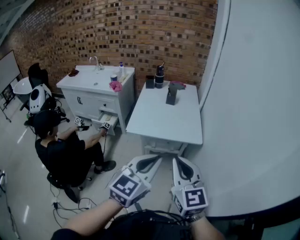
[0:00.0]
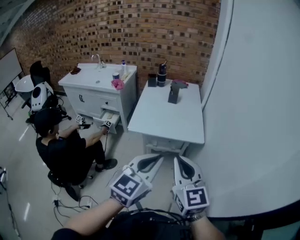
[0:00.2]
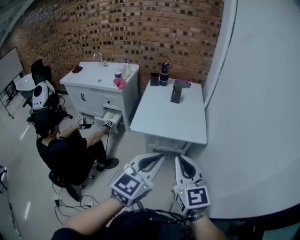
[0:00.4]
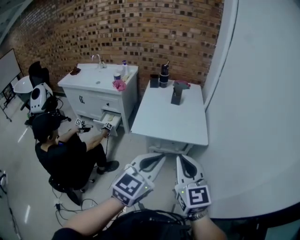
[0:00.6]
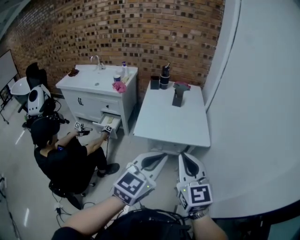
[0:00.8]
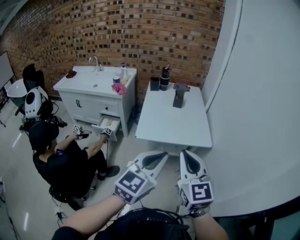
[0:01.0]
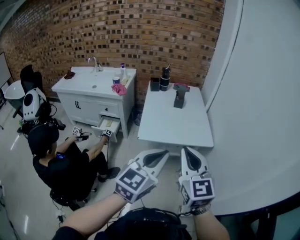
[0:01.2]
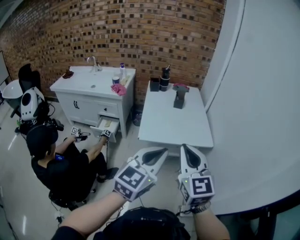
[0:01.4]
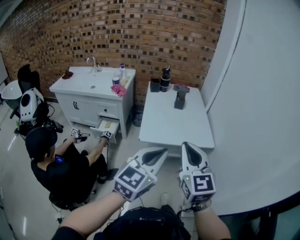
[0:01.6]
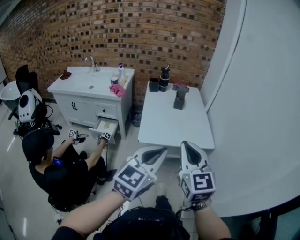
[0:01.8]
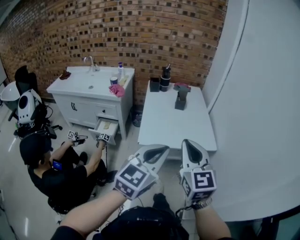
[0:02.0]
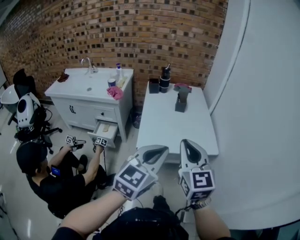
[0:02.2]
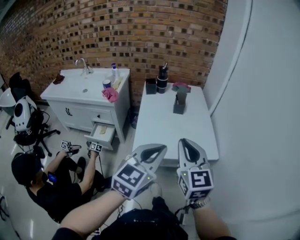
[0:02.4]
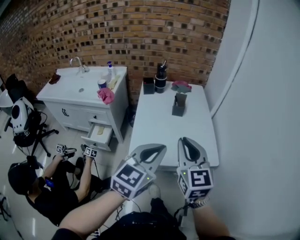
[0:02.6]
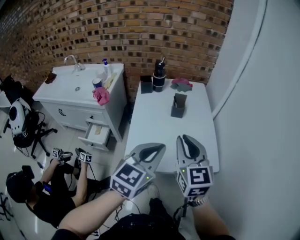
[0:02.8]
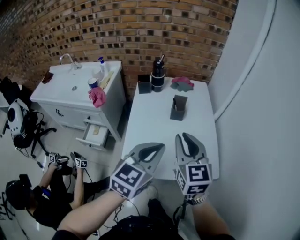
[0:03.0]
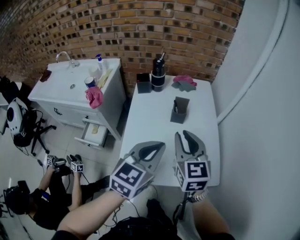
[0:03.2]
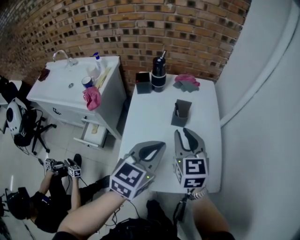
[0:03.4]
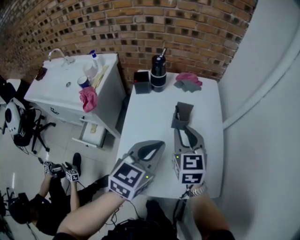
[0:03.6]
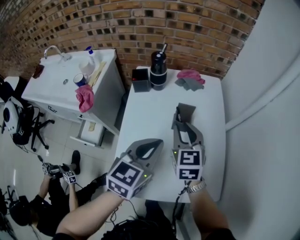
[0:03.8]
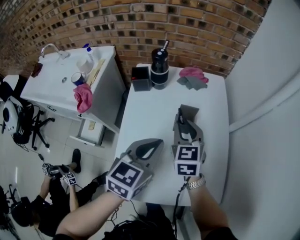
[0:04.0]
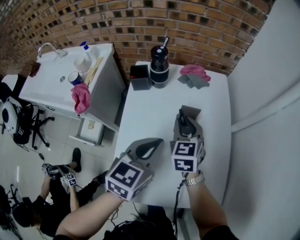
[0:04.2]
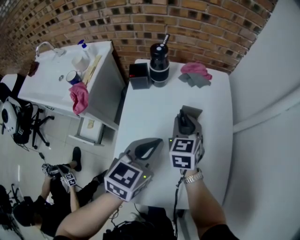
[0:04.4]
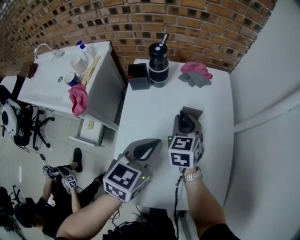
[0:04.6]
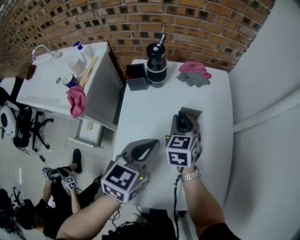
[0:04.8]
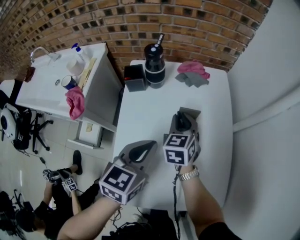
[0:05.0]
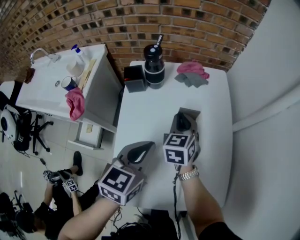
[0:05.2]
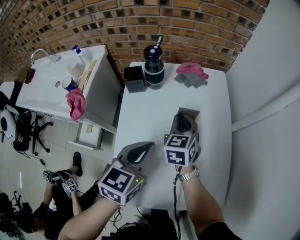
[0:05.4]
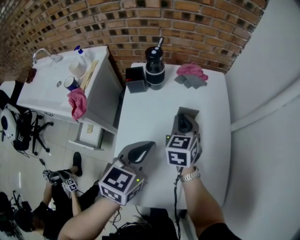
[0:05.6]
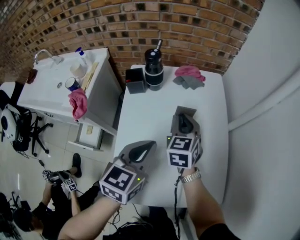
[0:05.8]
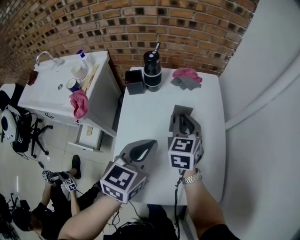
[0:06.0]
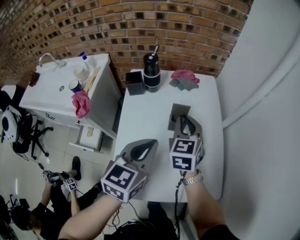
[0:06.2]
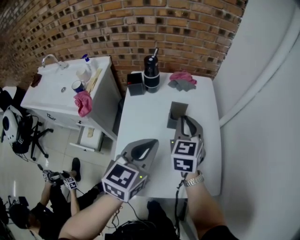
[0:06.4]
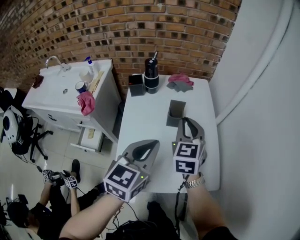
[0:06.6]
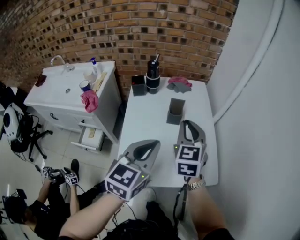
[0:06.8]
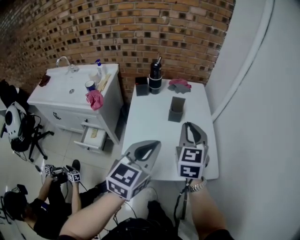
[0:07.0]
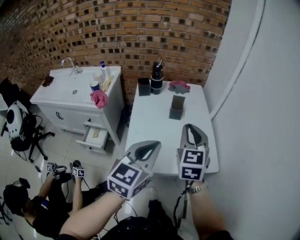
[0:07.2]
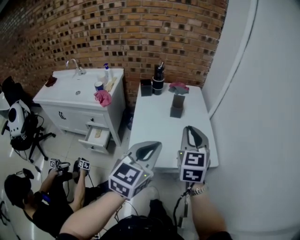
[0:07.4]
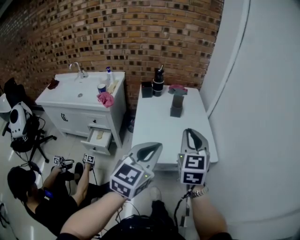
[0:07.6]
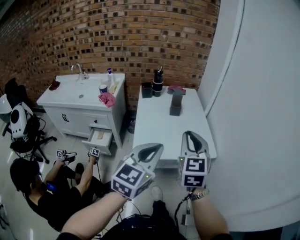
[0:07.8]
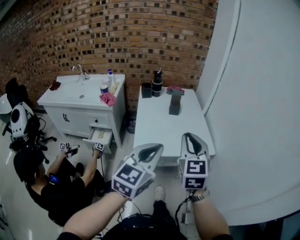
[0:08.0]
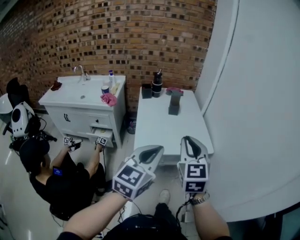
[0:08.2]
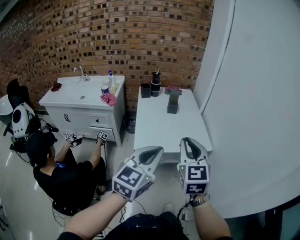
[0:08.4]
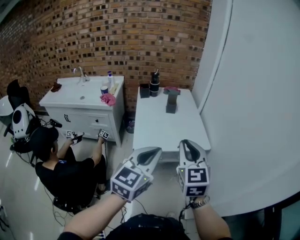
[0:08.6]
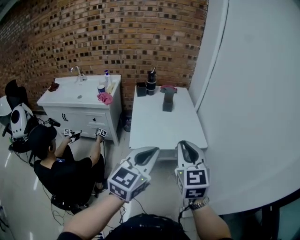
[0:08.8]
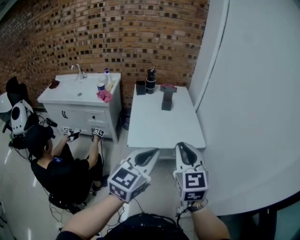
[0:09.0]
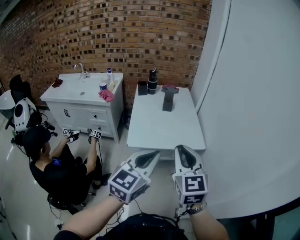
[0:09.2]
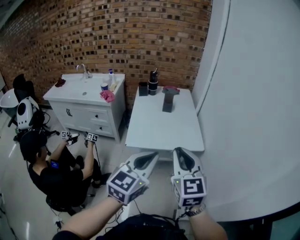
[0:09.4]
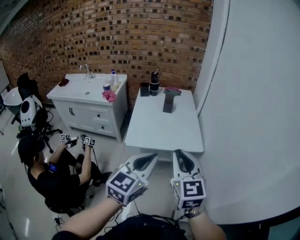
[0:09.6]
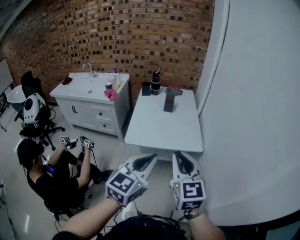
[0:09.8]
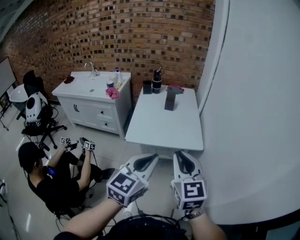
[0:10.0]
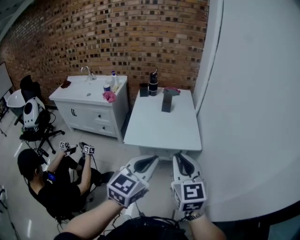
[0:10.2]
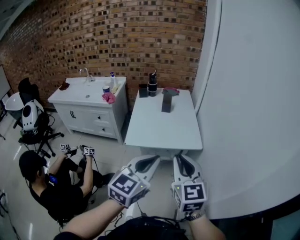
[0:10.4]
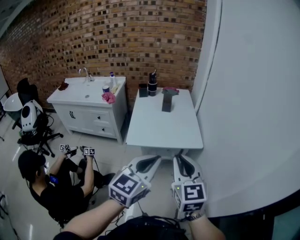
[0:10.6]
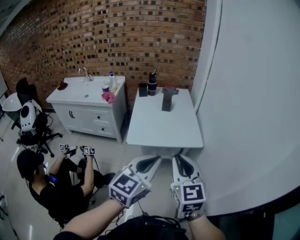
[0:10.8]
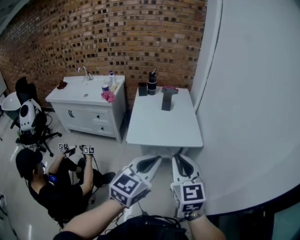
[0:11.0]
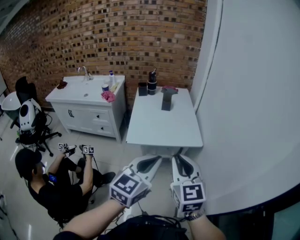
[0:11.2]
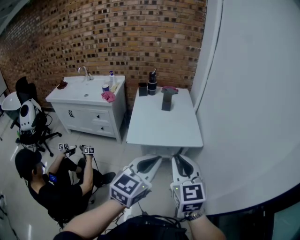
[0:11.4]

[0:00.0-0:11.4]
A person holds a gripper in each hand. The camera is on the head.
0:00.0 to 0:01.4: Both grippers move to the left, roughly 15 cm.
0:01.4 to 0:02.8: Both grippers move forward, some 35 cm.
0:02.8 to 0:04.2: The two grippers go roughly 35 cm forward and downward. The right gripper turns by roughly 20 degrees.
0:04.2 to 0:05.6: The grippers make only small movements.
0:05.6 to 0:07.2: The two grippers go roughly 35 cm backward and upward.
0:07.2 to 0:08.6: Both grippers travel together backward, approximately 30 cm.
0:08.6 to 0:10.0: Both grippers move to the right, approximately 15 cm.
0:10.0 to 0:11.4: The right gripper shifts by roughly 5 cm.

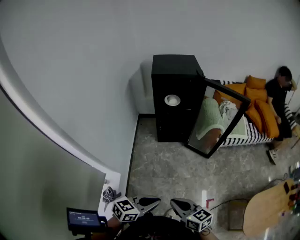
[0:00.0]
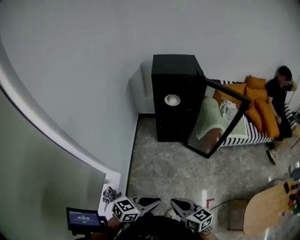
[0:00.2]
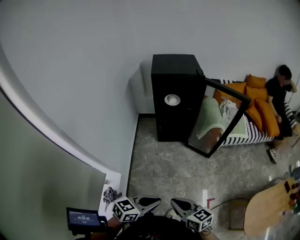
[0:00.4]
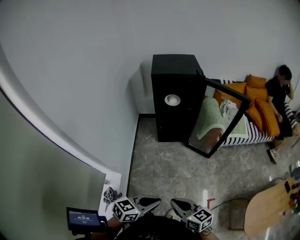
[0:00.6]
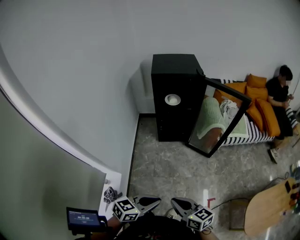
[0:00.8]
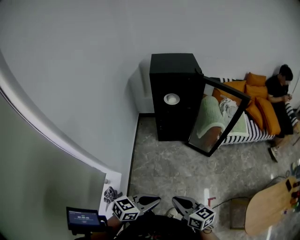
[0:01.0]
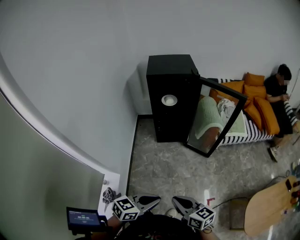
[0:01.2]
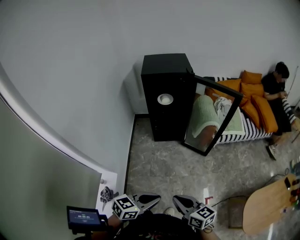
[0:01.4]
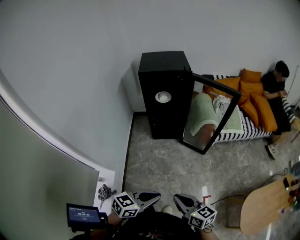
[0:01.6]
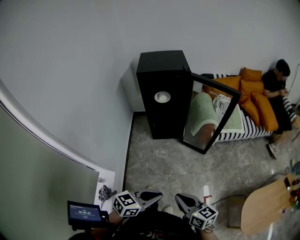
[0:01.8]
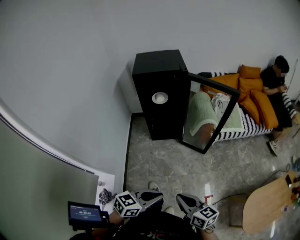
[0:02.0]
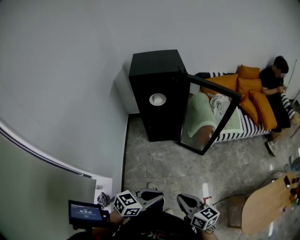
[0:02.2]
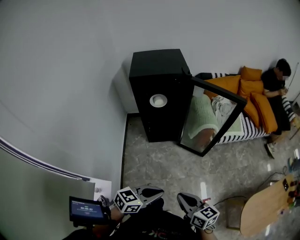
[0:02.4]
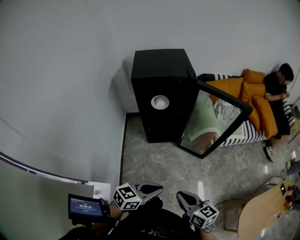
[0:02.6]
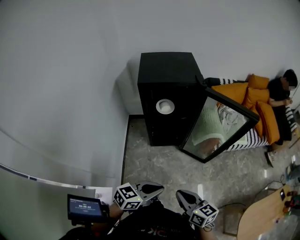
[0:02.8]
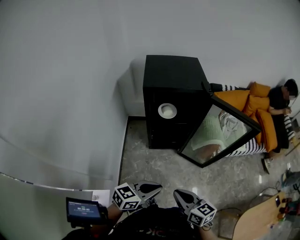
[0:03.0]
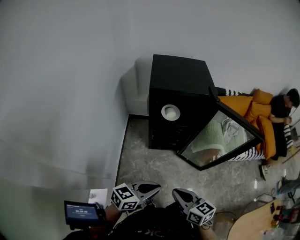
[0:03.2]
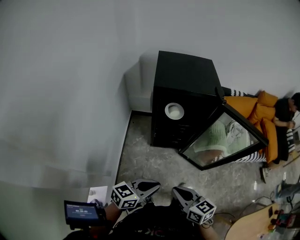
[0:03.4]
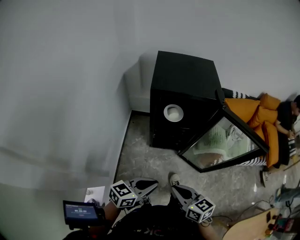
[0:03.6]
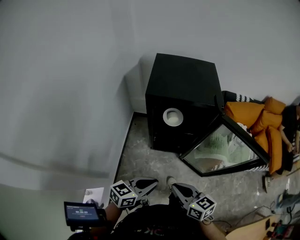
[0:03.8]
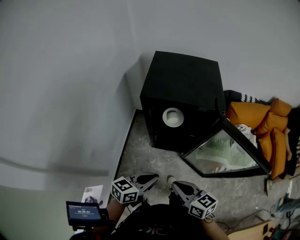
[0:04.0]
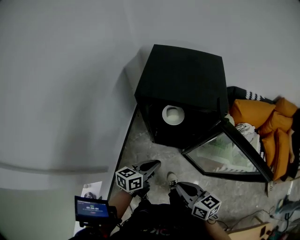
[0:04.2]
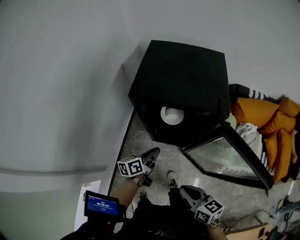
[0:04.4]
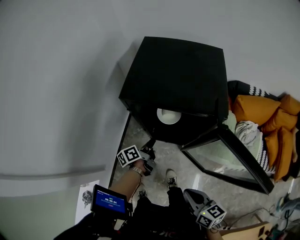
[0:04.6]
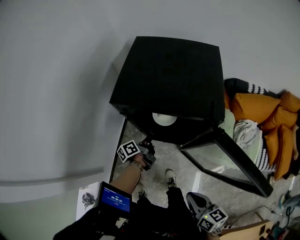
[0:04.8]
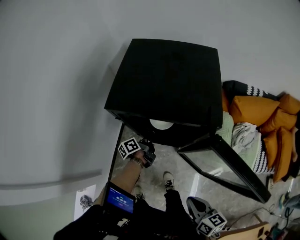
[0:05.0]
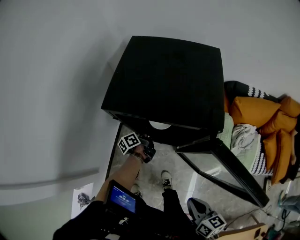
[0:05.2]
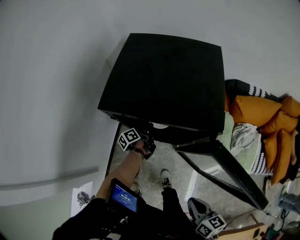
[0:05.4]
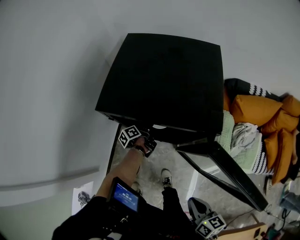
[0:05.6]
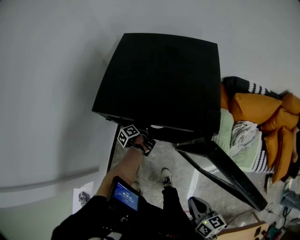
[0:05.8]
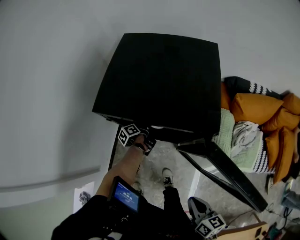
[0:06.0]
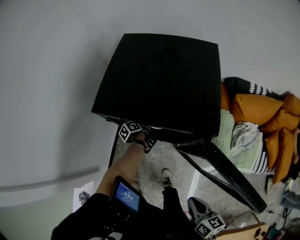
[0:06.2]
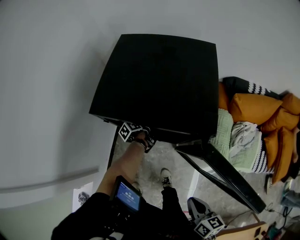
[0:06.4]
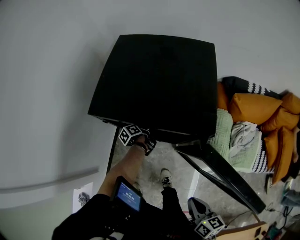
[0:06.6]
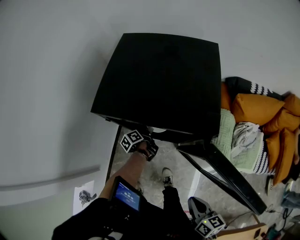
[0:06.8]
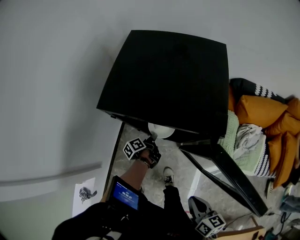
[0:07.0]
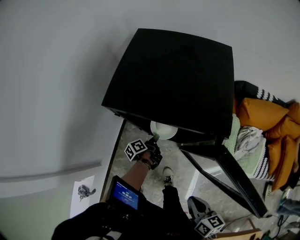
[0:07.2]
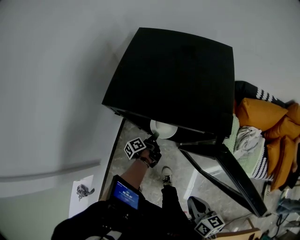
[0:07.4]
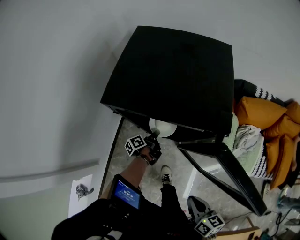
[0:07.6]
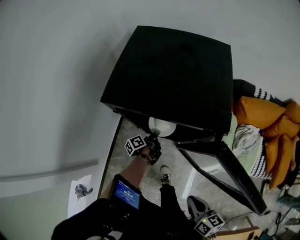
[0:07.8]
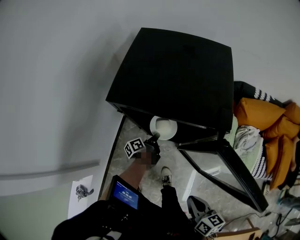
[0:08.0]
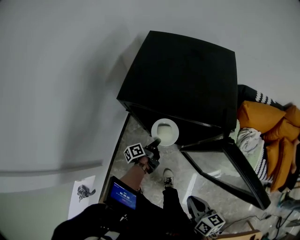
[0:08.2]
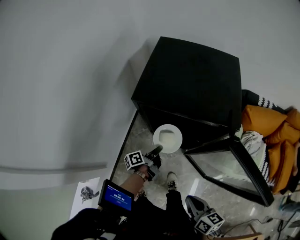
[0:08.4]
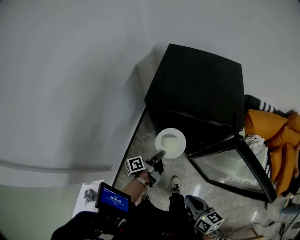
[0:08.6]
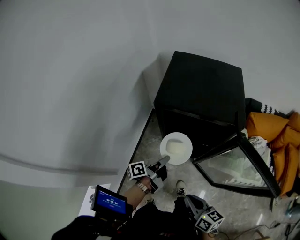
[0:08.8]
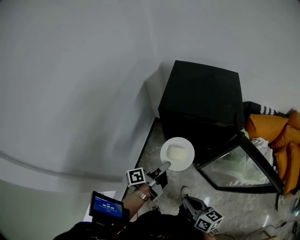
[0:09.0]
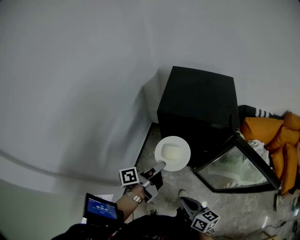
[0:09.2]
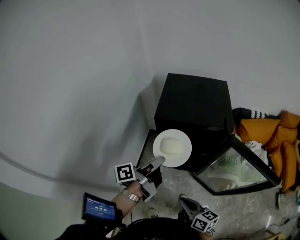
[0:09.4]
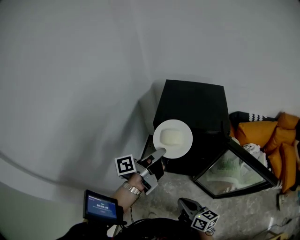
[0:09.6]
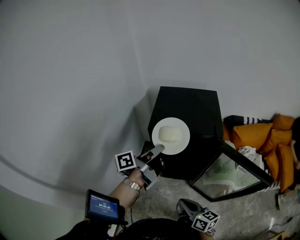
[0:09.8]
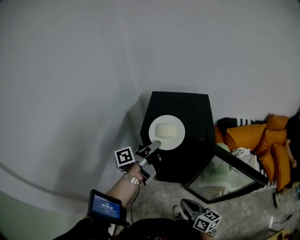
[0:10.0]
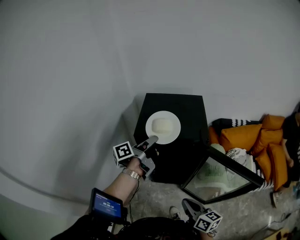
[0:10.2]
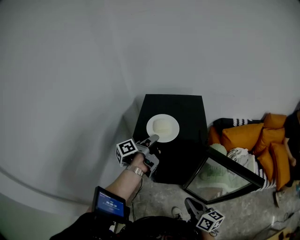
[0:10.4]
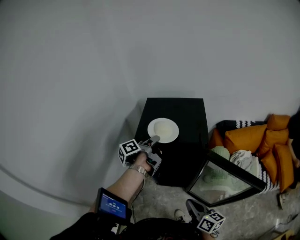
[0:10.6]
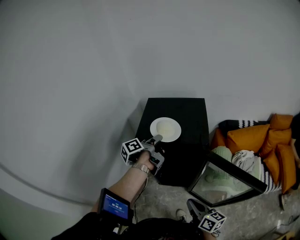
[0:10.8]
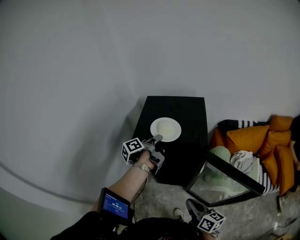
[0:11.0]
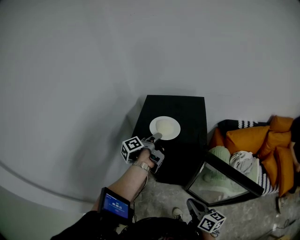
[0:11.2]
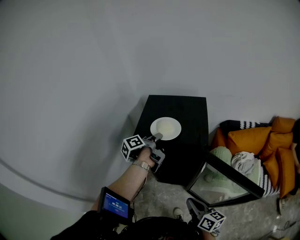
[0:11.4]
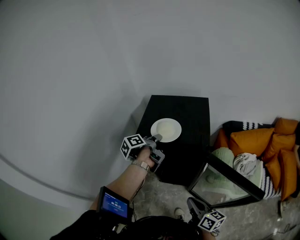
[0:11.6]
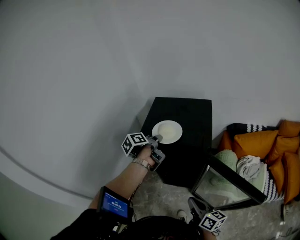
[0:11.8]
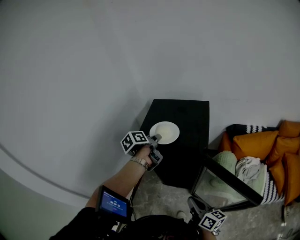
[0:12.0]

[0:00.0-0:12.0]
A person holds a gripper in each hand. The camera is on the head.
0:00.0 to 0:01.6: Both grippers move to the right, about 10 cm.
0:01.6 to 0:03.0: The grippers both shift forward and to the left by some 25 cm.
0:03.0 to 0:04.4: The right gripper moves some 25 cm, while the left gripper changes place by about 35 cm, and changes its angle by about 60 degrees.
0:04.4 to 0:06.0: The right gripper moves to the right, about 10 cm; the left gripper travels forward and downward by some 25 cm, turns by some 40 degrees, and opens its fingers.
0:06.0 to 0:07.6: The left gripper is displaced backward by approximately 5 cm, and closes its fingers.
0:07.6 to 0:09.0: The left gripper moves upward and backward, approximately 30 cm, and changes its angle by some 30 degrees; the right gripper moves to the left, some 15 cm.
0:09.0 to 0:10.4: The right gripper is displaced to the right by about 10 cm; the left gripper goes approximately 25 cm forward and upward.
0:10.4 to 0:12.0: The right gripper changes place by some 5 cm. Meanwhile the left gripper rotates approximately 30 degrees, and opens.
